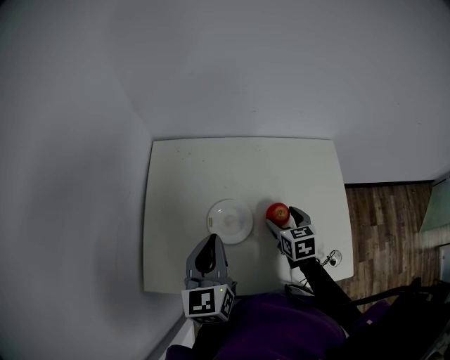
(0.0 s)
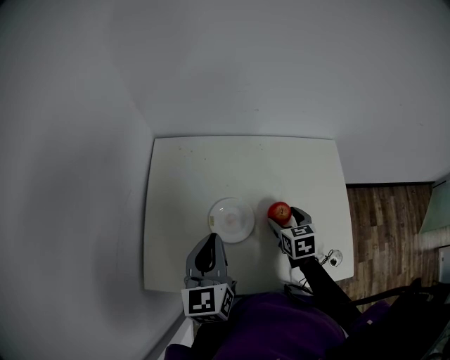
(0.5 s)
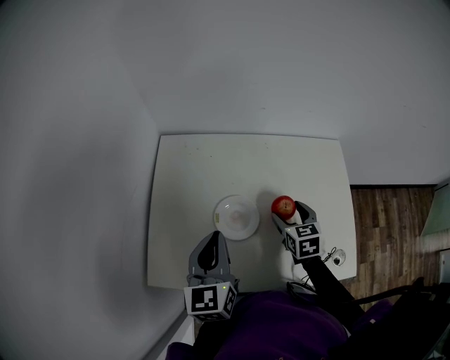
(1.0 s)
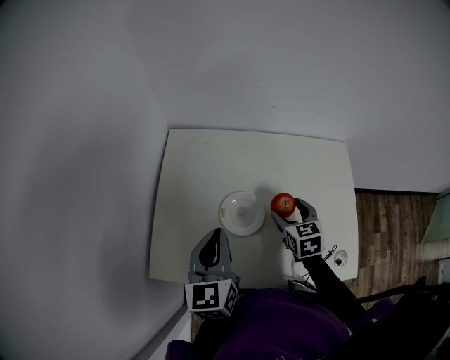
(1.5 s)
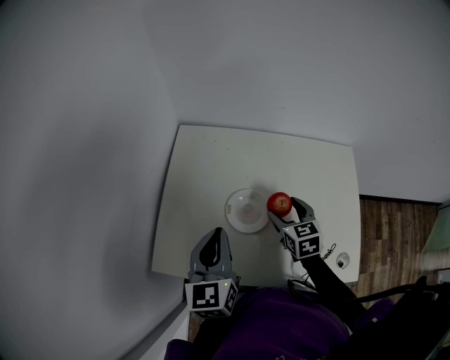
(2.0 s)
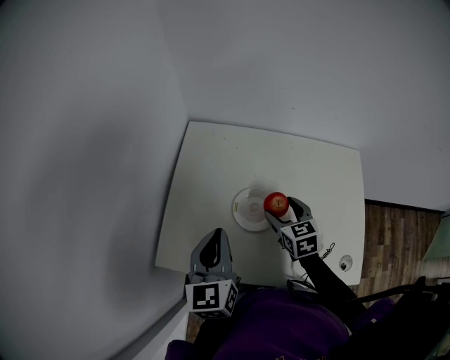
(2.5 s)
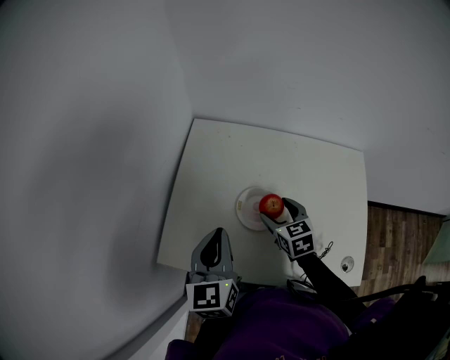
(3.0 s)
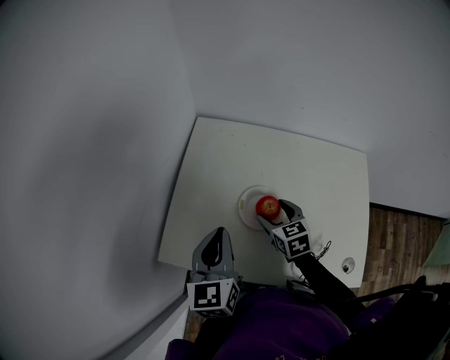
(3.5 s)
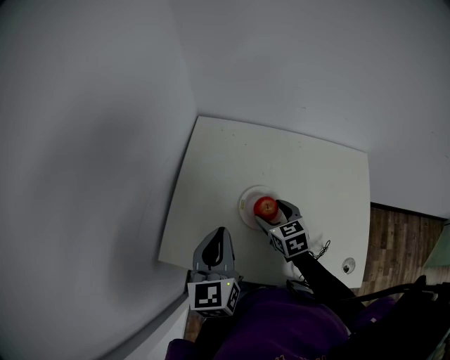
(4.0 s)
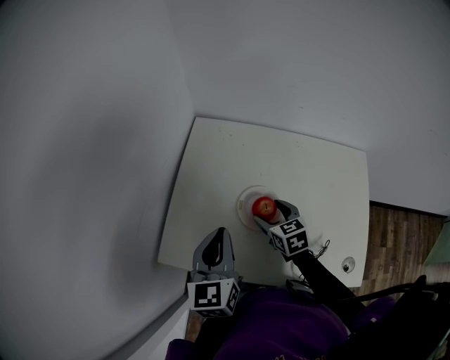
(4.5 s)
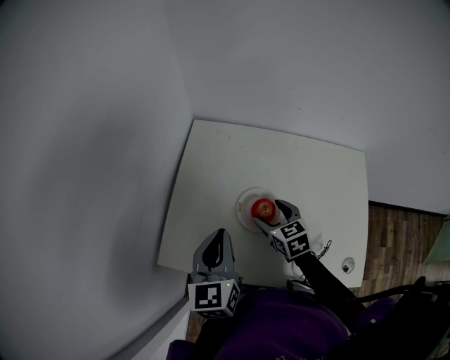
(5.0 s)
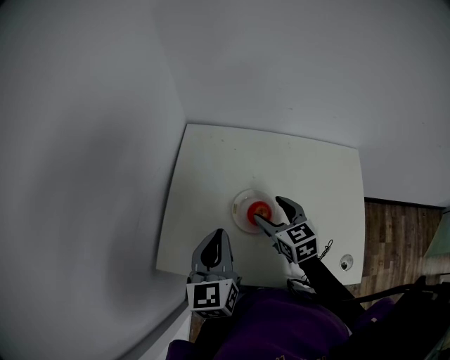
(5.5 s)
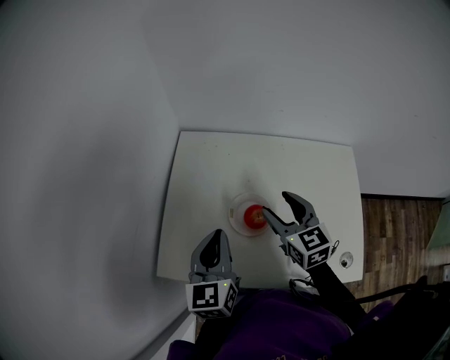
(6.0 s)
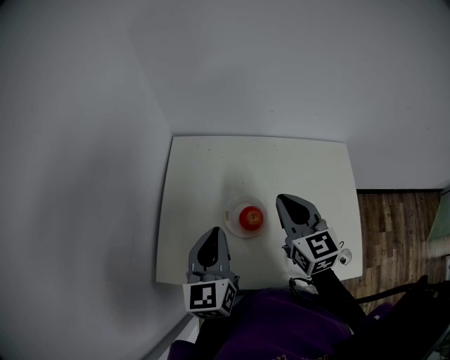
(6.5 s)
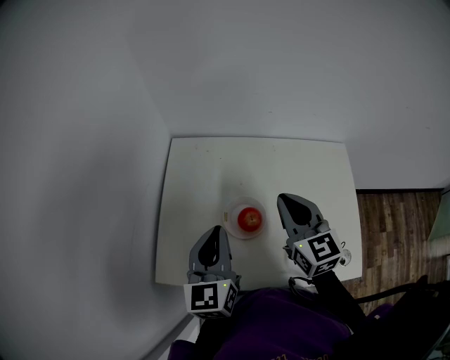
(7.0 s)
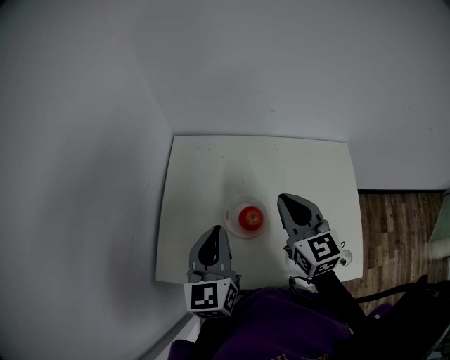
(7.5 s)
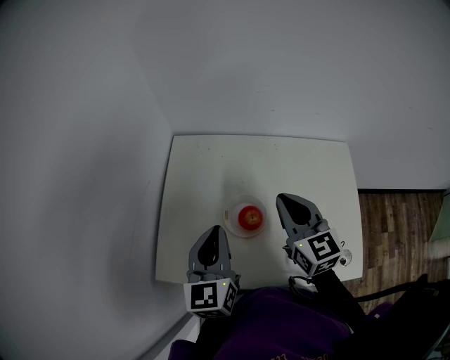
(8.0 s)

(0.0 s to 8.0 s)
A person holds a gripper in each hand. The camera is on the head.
0.0 s - 2.0 s: The right gripper travels to the left by roughly 5 cm.
2.0 s - 4.0 s: The right gripper goes approximately 10 cm to the left.
4.0 s - 6.0 s: The right gripper shifts some 10 cm upward.
6.0 s - 8.0 s: The right gripper travels upward by approximately 5 cm, and closes its fingers.

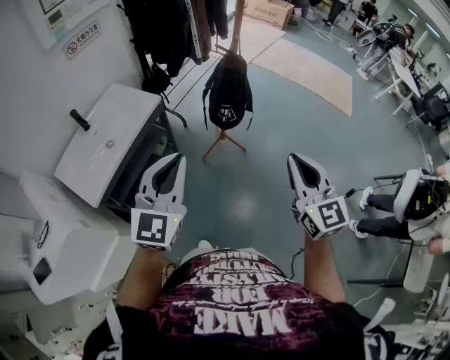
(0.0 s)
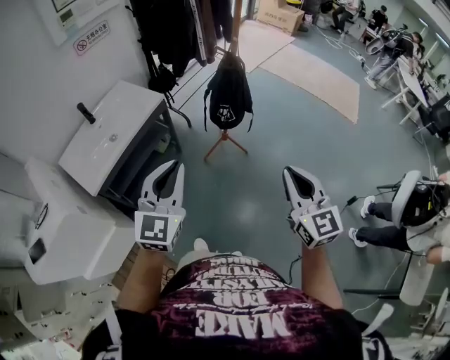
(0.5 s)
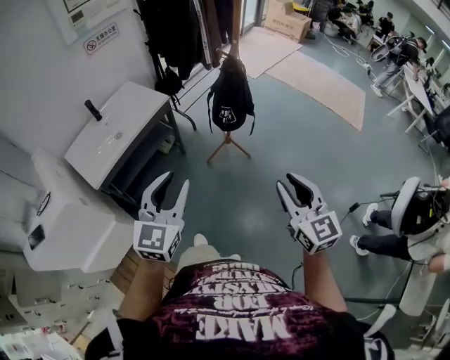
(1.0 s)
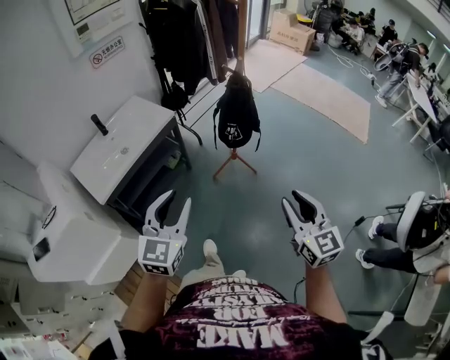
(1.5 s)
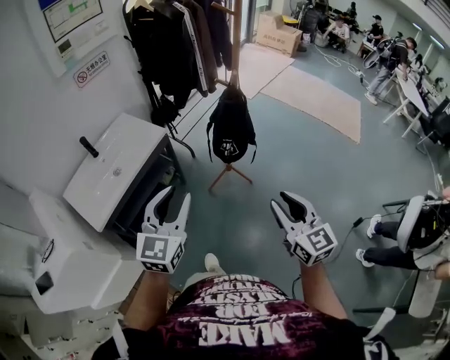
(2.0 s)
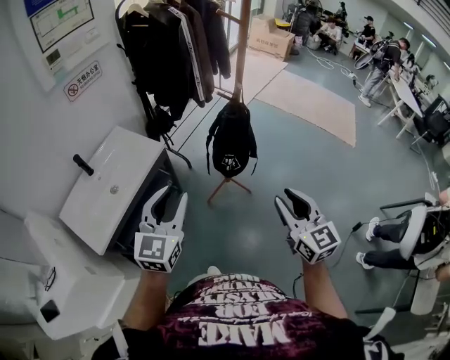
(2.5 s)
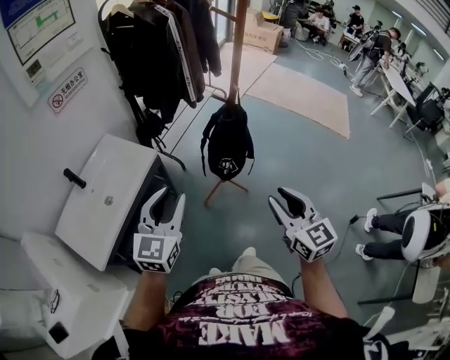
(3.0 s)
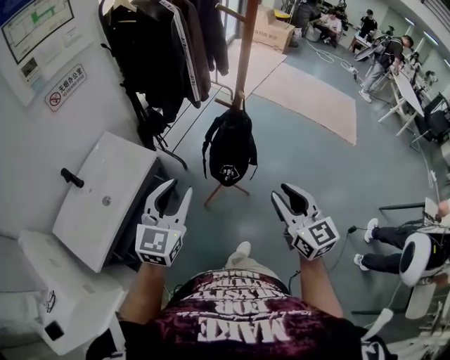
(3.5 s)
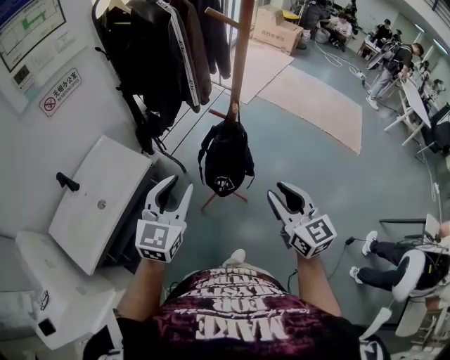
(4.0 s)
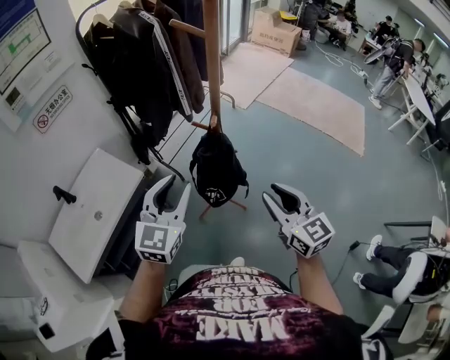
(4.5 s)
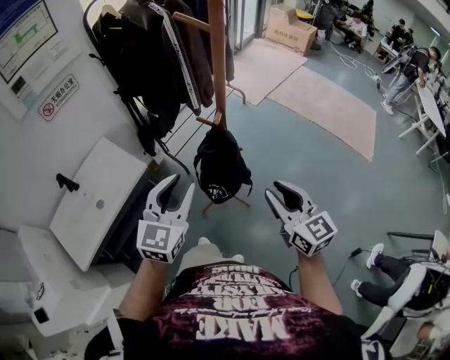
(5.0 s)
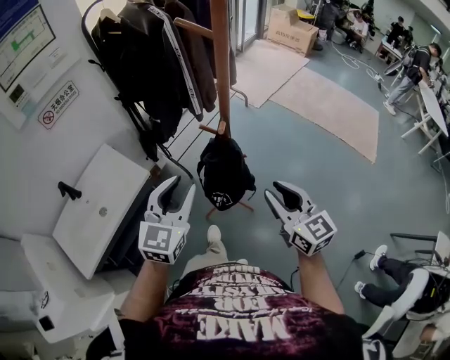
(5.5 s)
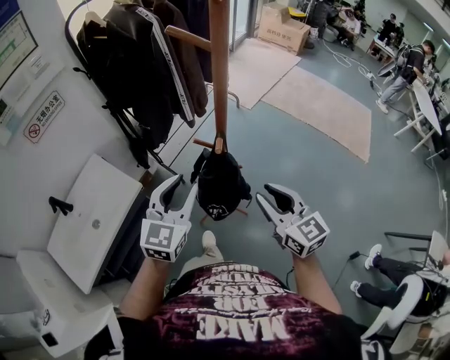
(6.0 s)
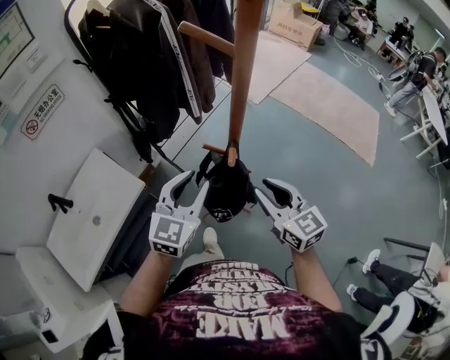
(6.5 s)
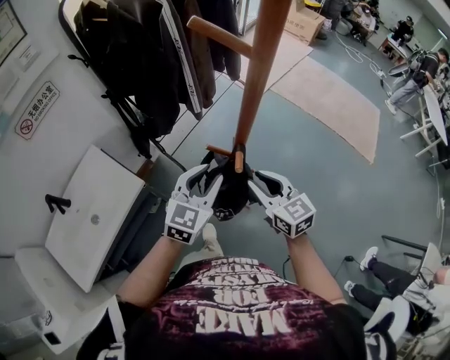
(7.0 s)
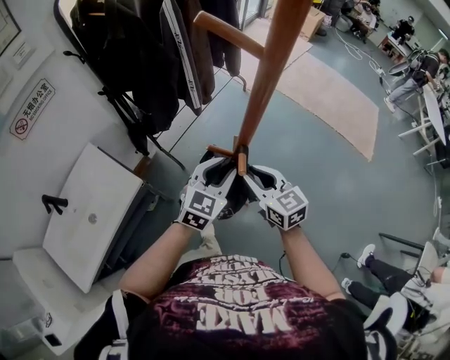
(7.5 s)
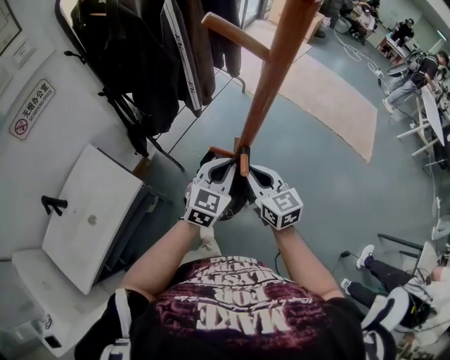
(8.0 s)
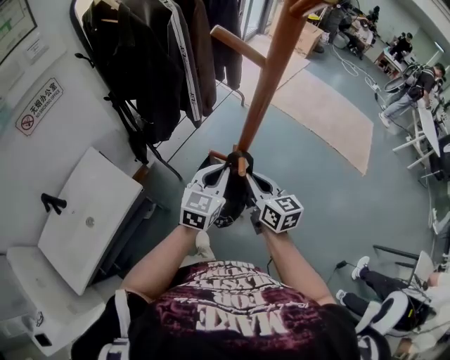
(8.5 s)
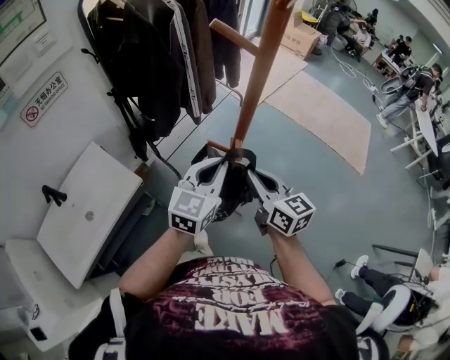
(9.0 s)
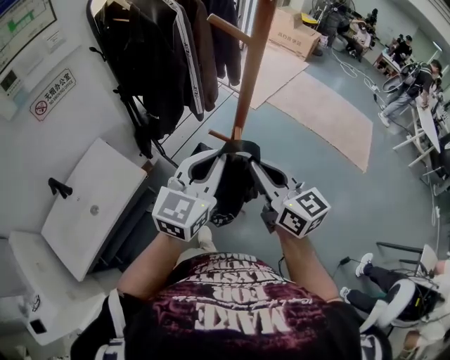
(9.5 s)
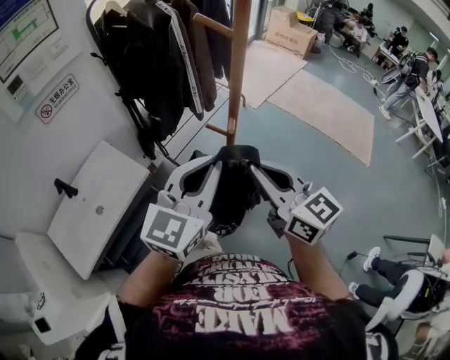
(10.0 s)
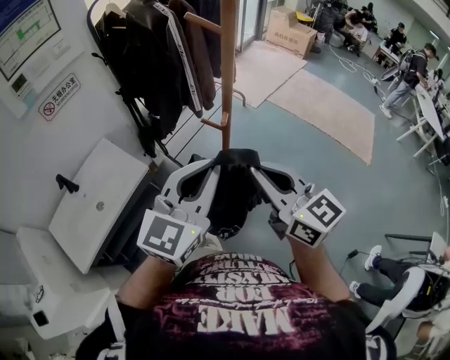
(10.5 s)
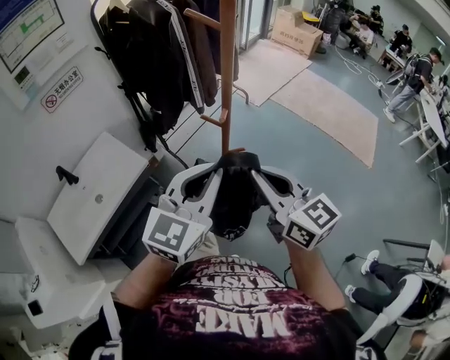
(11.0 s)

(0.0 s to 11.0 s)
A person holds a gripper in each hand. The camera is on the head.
0.0 s - 2.0 s: The left gripper moves some 10 cm backward and comes back, and opens up, while the right gripper moves downward, some 5 cm, reaches about 10 cm backward, then returns, and opens up.
2.0 s - 3.5 s: The grippers both shift forward by approximately 20 cm.
3.5 s - 5.5 s: The grippers both shift forward and to the right by some 20 cm.
5.5 s - 7.5 s: The left gripper goes some 25 cm forward, downward and to the right. Meanwhile the right gripper is displaced forward and downward by some 20 cm.
7.5 s - 9.0 s: Both grippers travel together upward, some 10 cm. The right gripper closes. The left gripper closes up.
9.0 s - 11.0 s: The grippers both shift backward and upward by approximately 20 cm.

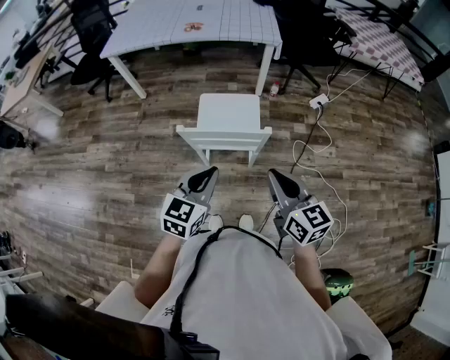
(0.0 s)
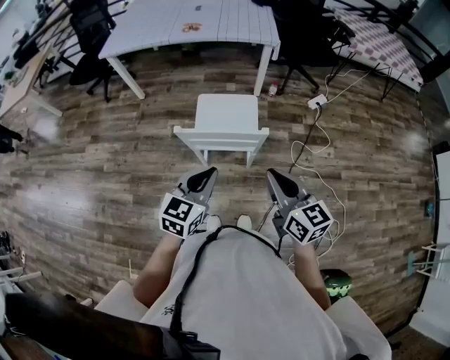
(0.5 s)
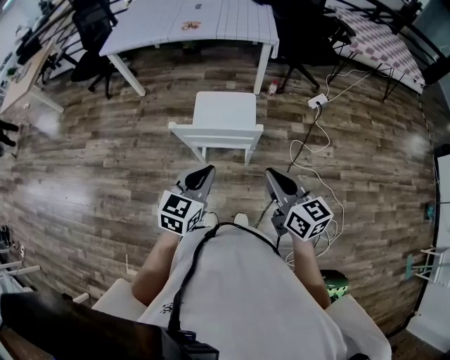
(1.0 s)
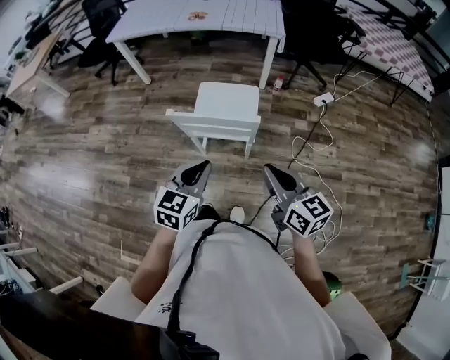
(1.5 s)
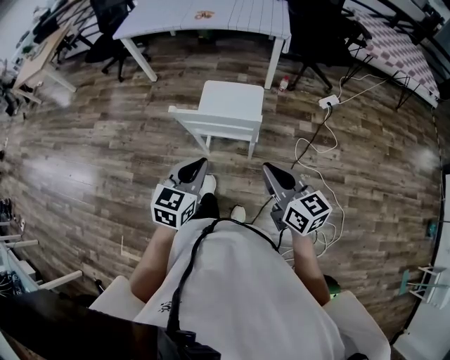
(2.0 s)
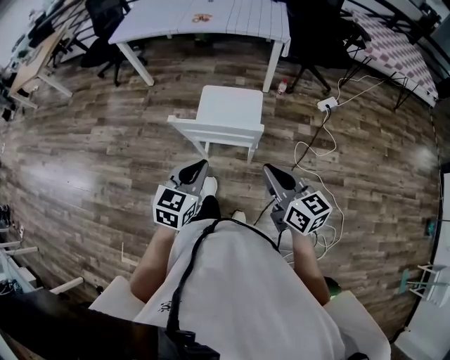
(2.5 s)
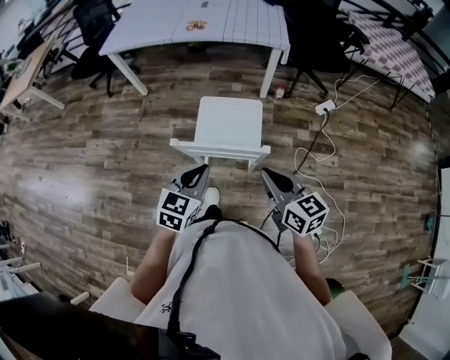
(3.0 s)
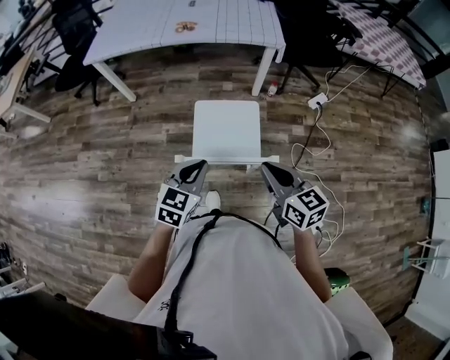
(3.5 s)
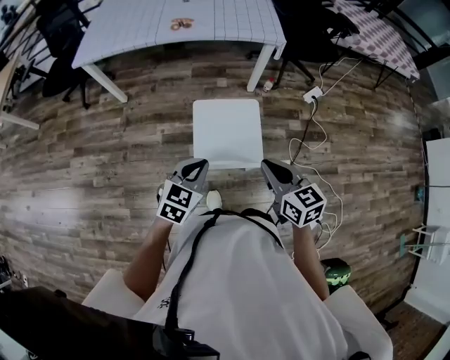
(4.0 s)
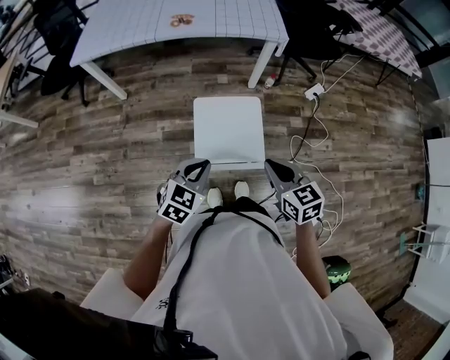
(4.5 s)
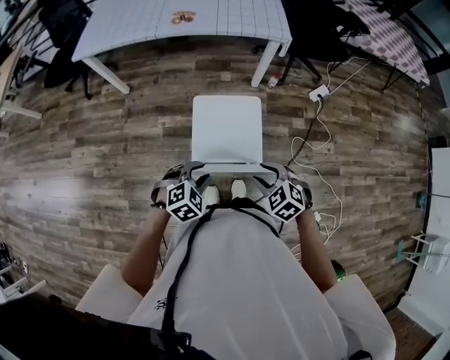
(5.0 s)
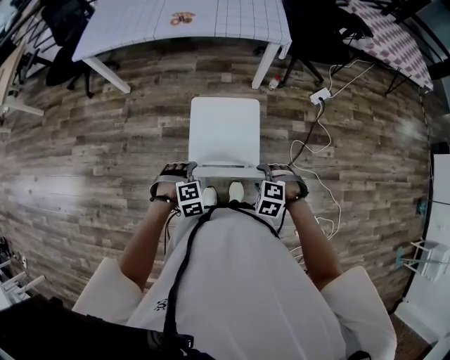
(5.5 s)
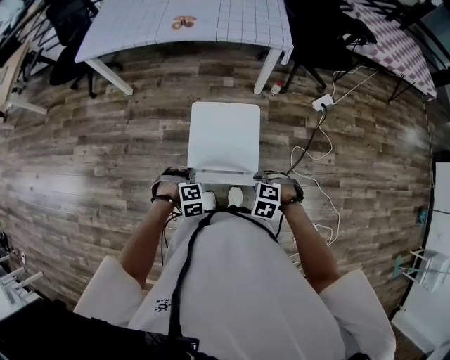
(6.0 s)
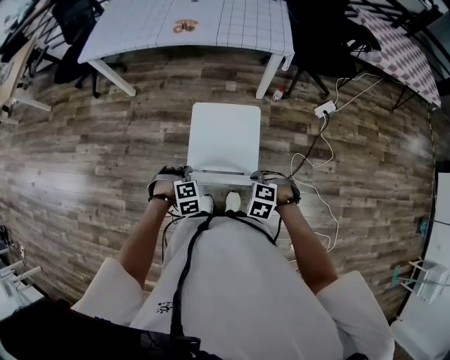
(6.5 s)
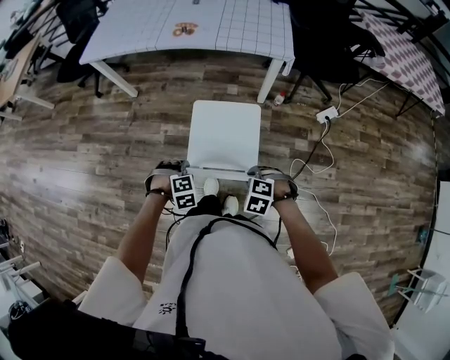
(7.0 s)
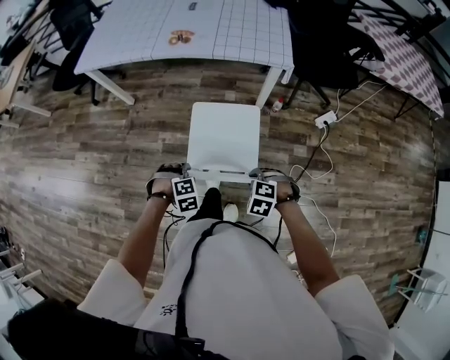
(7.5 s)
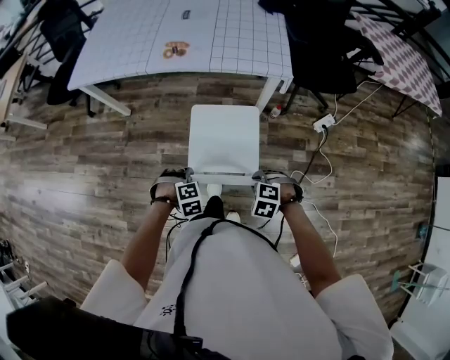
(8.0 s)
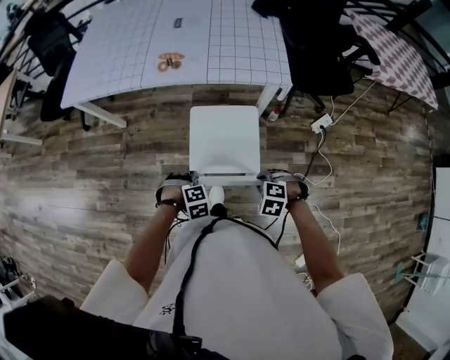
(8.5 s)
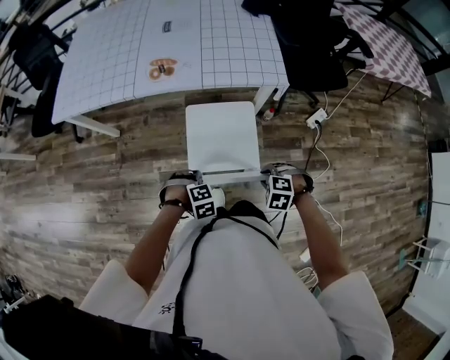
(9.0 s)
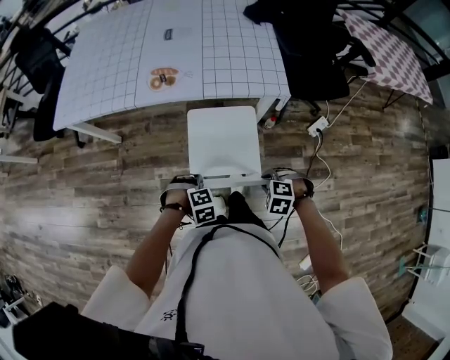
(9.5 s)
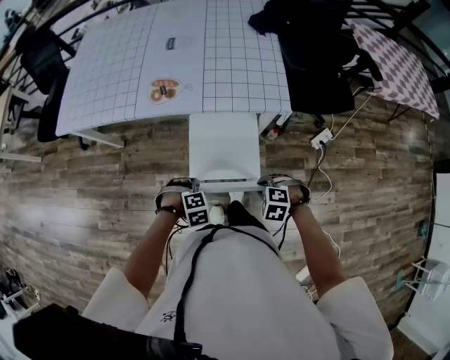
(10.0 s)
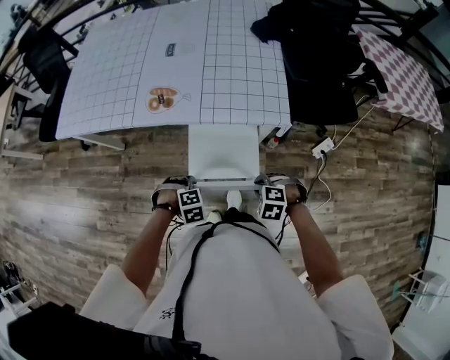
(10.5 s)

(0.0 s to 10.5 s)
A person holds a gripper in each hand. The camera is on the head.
0.0 s - 2.0 s: The left gripper shifts by roughly 5 cm. The right gripper is displaced to the right by some 5 cm.
2.0 s - 4.0 s: The two grippers go about 30 cm forward and to the left. The left gripper rotates roughly 20 degrees.
4.0 s - 6.5 s: The two grippers go roughly 20 cm downward. The left gripper angles its fingers downward, by about 40 degrees, and opens its fingers. Meanwhile the right gripper tips its fingers downward by some 50 degrees, and opens its fingers.
6.5 s - 8.5 s: The right gripper ends up roughly 25 cm from where it was. The left gripper shifts by roughly 25 cm.
8.5 s - 10.5 s: The left gripper shifts by about 20 cm; the right gripper ends up about 20 cm from where it was.
